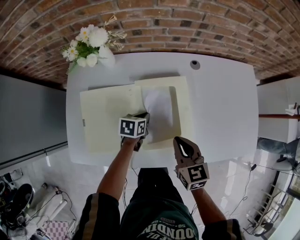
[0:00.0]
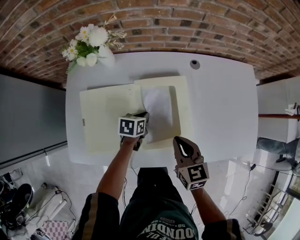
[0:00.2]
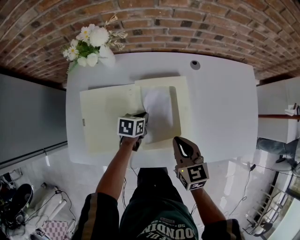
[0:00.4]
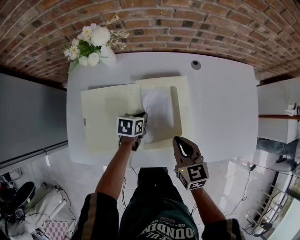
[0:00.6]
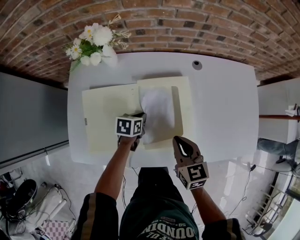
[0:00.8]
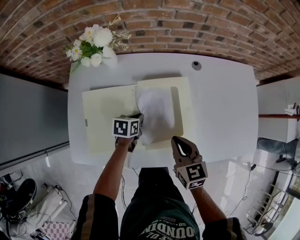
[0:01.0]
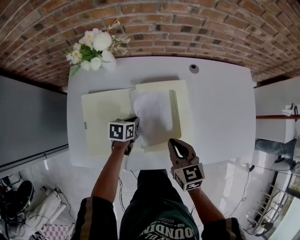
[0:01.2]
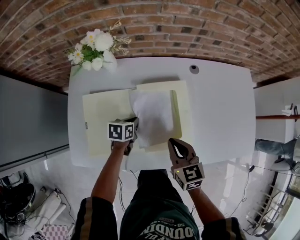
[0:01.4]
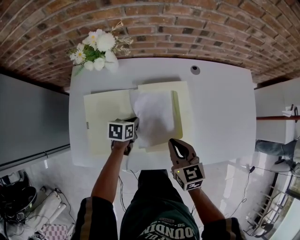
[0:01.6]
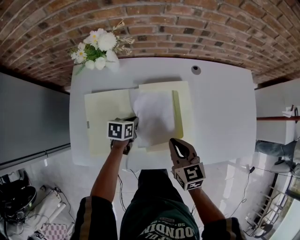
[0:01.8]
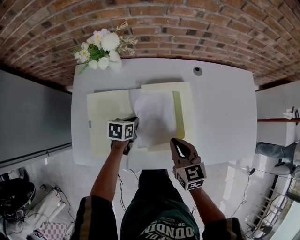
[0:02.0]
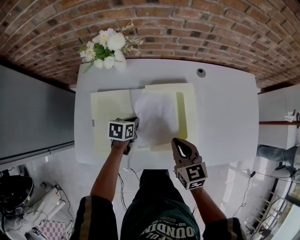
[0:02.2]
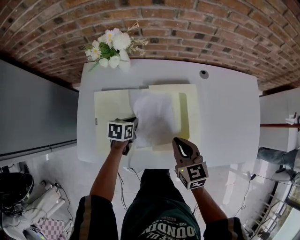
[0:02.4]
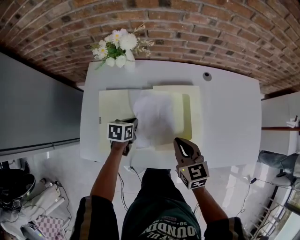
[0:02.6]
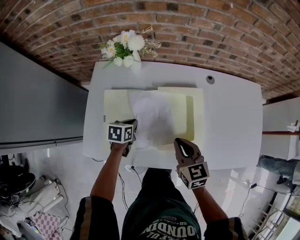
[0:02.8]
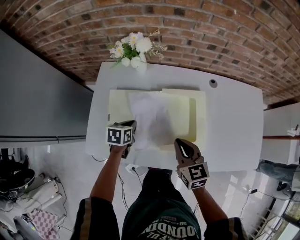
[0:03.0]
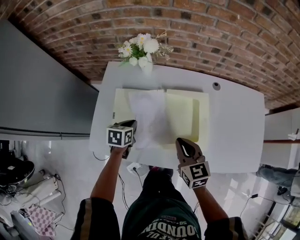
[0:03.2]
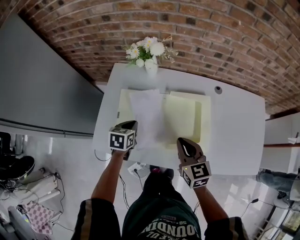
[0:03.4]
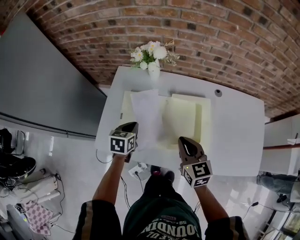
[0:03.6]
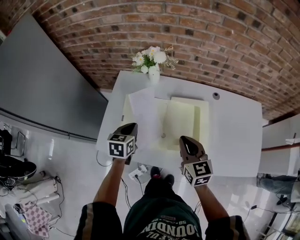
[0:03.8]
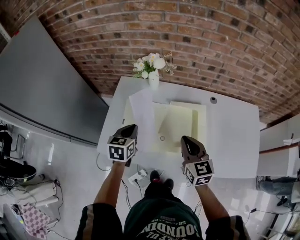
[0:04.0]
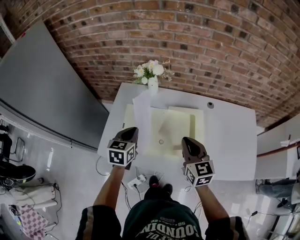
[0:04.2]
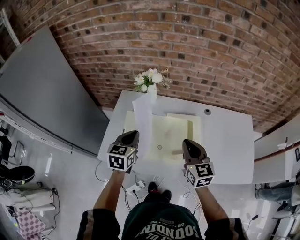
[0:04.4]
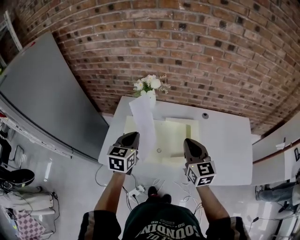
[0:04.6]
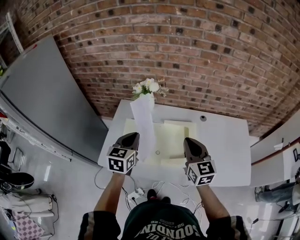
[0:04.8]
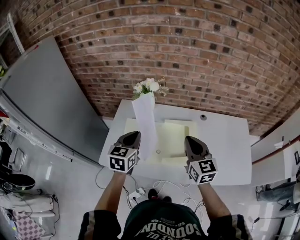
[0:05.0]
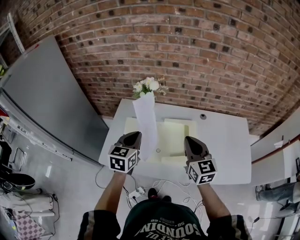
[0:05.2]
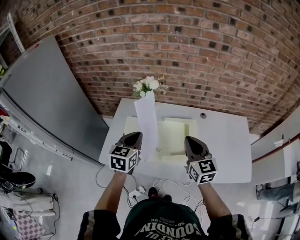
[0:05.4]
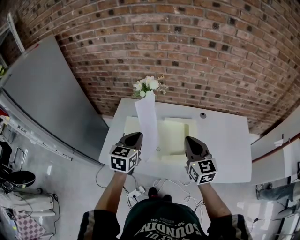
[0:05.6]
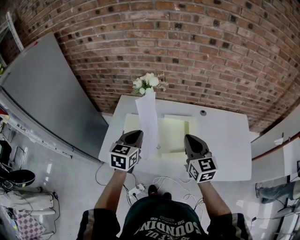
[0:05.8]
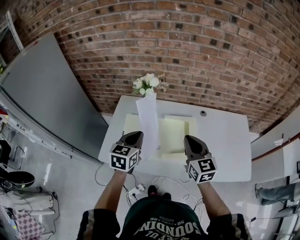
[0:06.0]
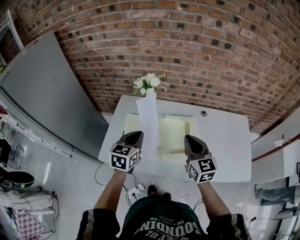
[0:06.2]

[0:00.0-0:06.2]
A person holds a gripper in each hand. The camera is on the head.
0:00.0 to 0:01.6: The left gripper heads to the left, covering roughly 5 cm.
0:01.6 to 0:03.2: The left gripper travels to the left, upward and backward by approximately 15 cm, while the right gripper goes approximately 5 cm to the left.
0:03.2 to 0:04.6: The right gripper is displaced upward by about 15 cm. The left gripper travels upward by approximately 25 cm, and changes its angle by roughly 30 degrees.
0:04.6 to 0:06.2: The grippers make only small movements.

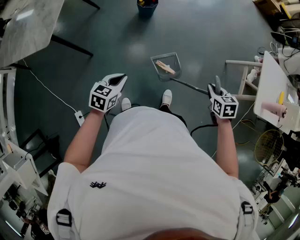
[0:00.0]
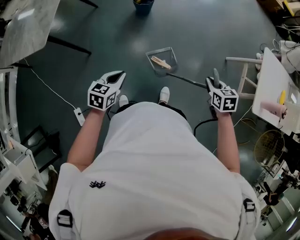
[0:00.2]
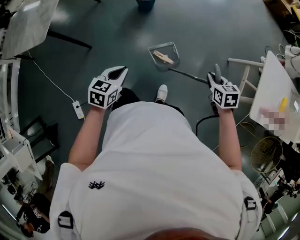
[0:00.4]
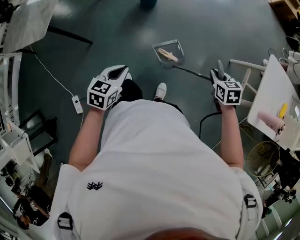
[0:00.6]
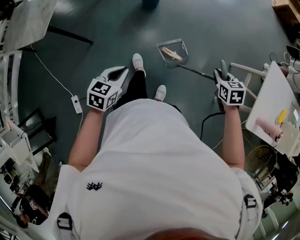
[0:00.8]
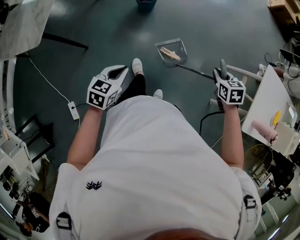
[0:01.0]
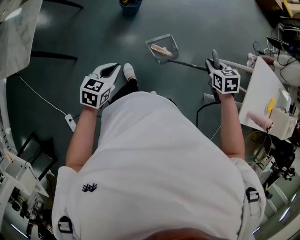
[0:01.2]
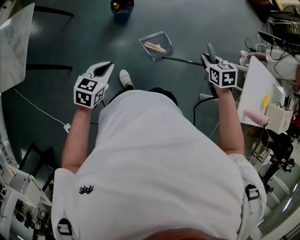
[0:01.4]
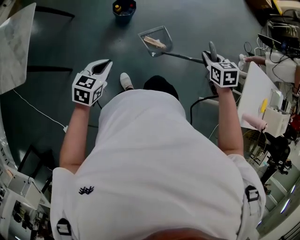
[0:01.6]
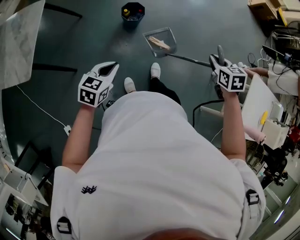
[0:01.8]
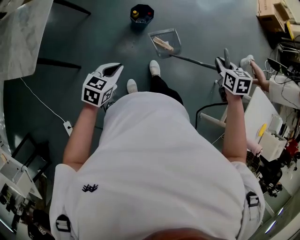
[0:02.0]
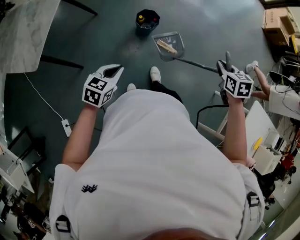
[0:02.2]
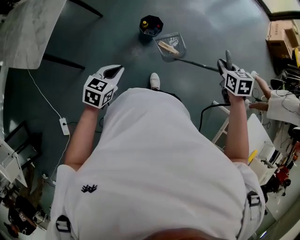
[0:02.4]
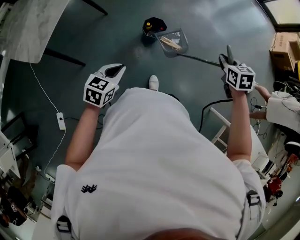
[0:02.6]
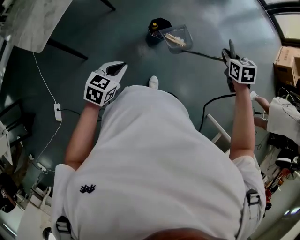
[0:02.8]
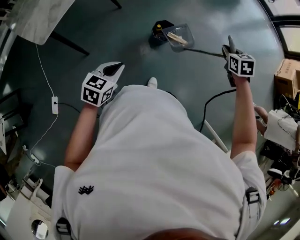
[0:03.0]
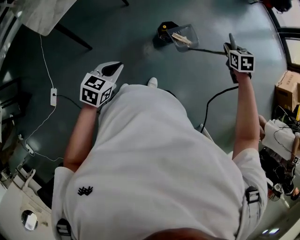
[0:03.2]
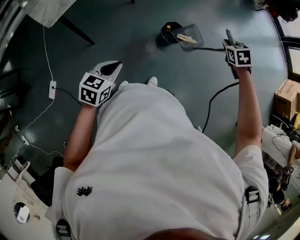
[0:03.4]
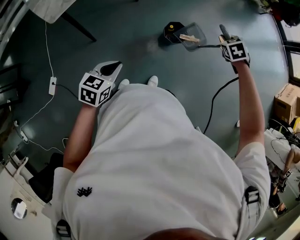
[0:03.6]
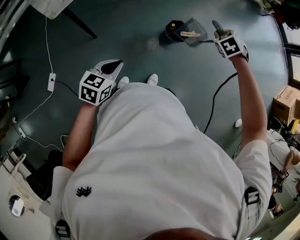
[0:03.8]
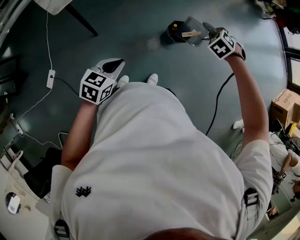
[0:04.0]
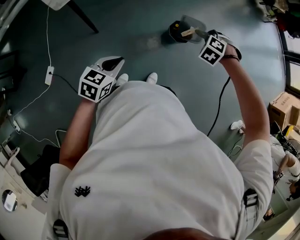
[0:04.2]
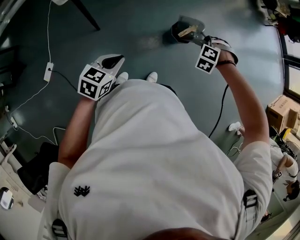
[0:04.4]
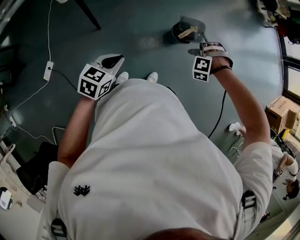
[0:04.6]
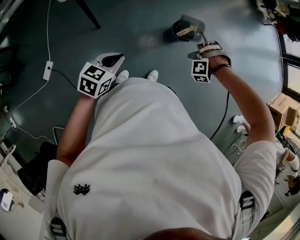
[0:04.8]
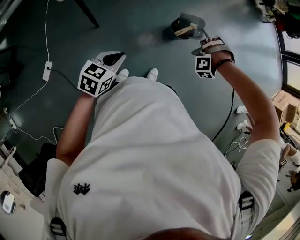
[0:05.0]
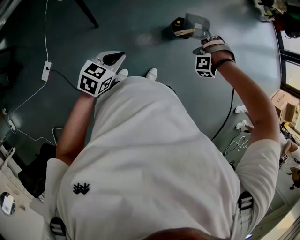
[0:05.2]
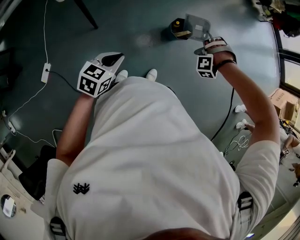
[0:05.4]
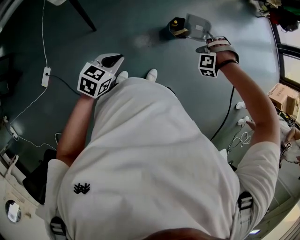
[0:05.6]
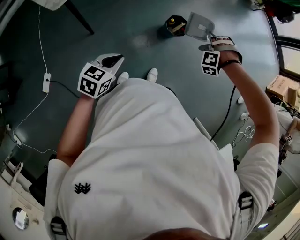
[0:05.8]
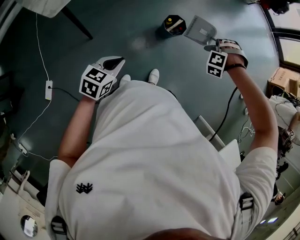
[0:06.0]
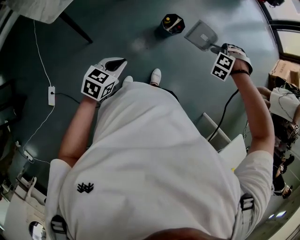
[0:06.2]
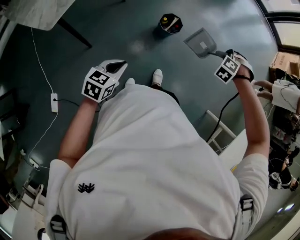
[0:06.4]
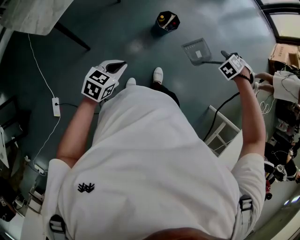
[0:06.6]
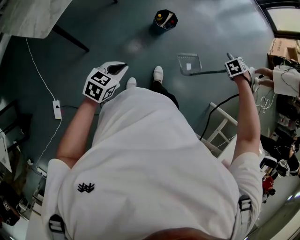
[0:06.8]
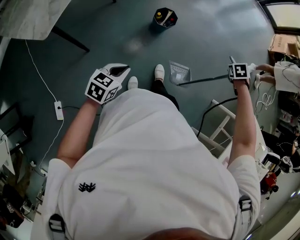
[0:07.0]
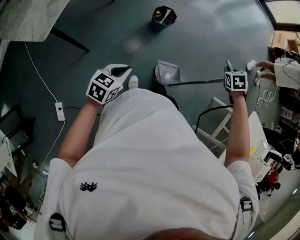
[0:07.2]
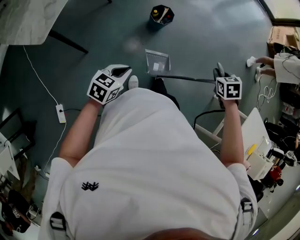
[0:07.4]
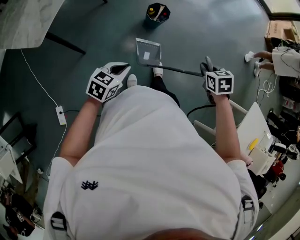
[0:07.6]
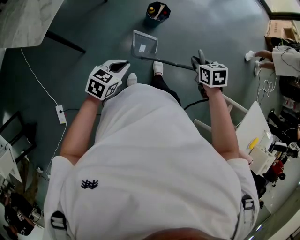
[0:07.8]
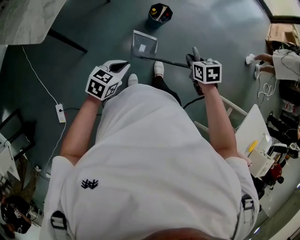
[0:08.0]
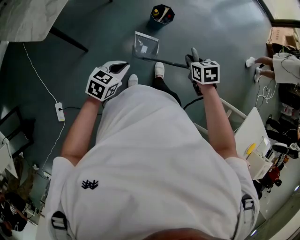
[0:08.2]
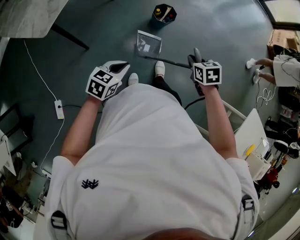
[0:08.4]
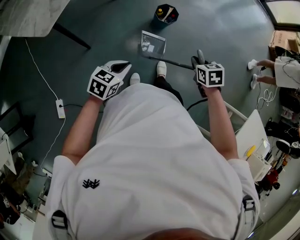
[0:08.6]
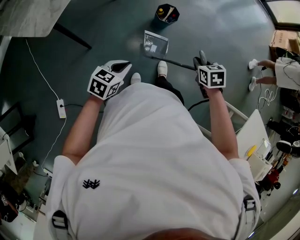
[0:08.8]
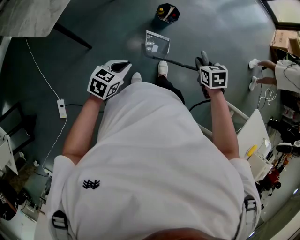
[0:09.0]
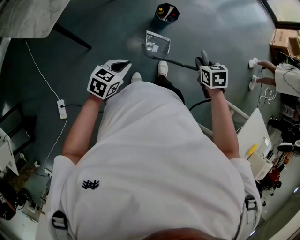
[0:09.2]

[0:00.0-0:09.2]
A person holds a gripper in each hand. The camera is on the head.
0:00.0 to 0:01.6: The left gripper changes place by approximately 30 cm.
0:01.6 to 0:03.0: The left gripper moves some 15 cm, and rotates some 30 degrees.
0:03.0 to 0:04.6: The left gripper shifts by roughly 10 cm.
0:06.2 to 0:07.6: The left gripper moves about 5 cm.

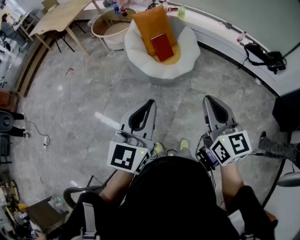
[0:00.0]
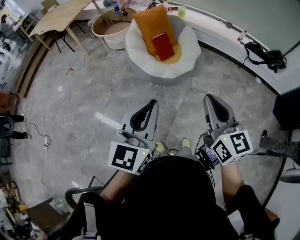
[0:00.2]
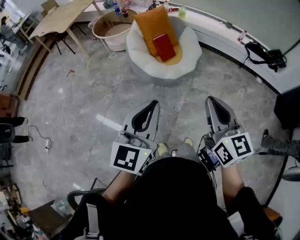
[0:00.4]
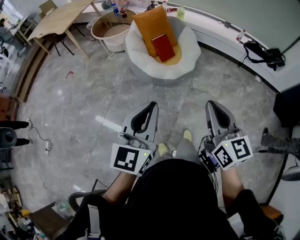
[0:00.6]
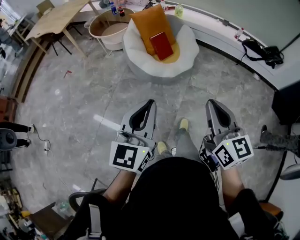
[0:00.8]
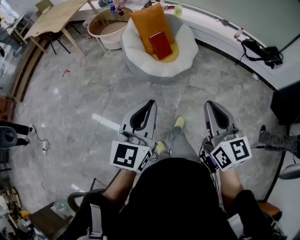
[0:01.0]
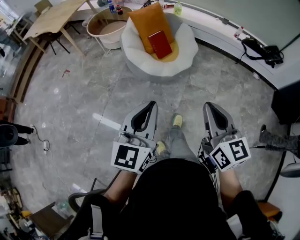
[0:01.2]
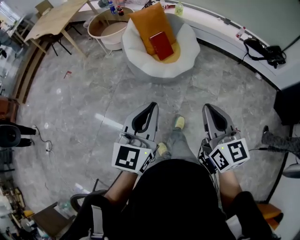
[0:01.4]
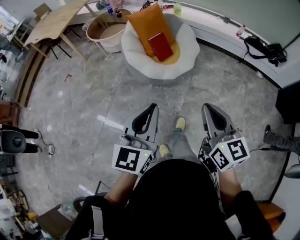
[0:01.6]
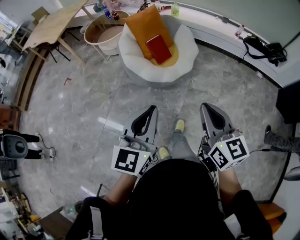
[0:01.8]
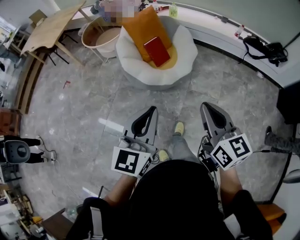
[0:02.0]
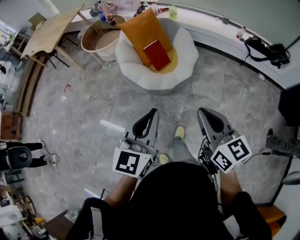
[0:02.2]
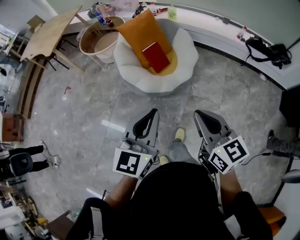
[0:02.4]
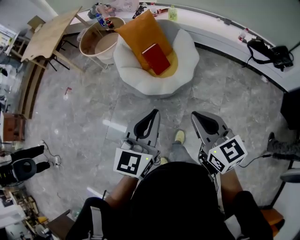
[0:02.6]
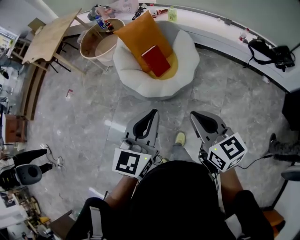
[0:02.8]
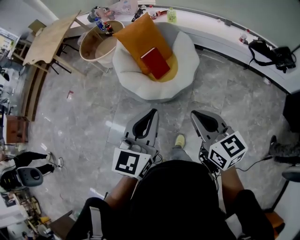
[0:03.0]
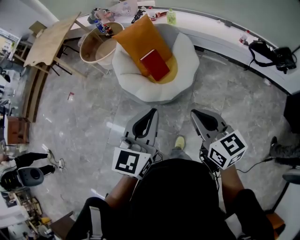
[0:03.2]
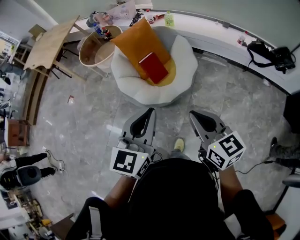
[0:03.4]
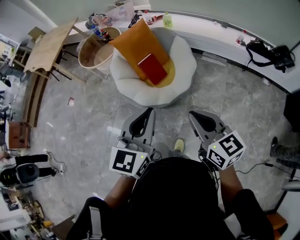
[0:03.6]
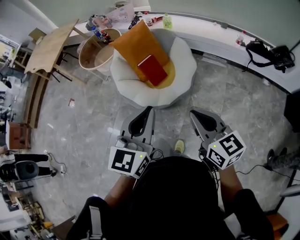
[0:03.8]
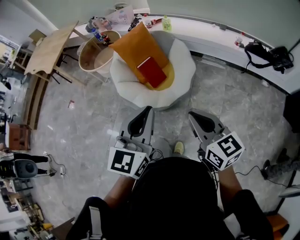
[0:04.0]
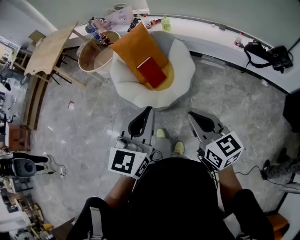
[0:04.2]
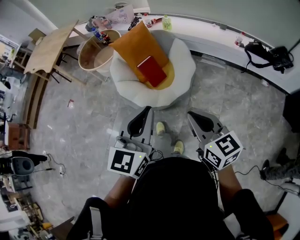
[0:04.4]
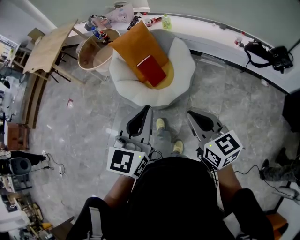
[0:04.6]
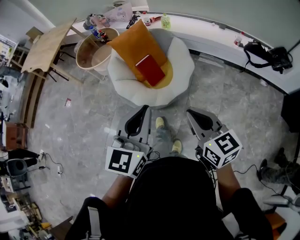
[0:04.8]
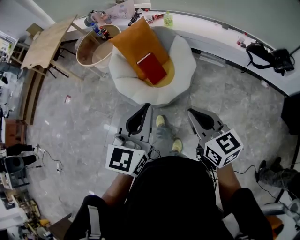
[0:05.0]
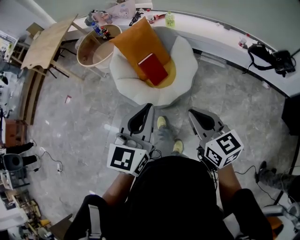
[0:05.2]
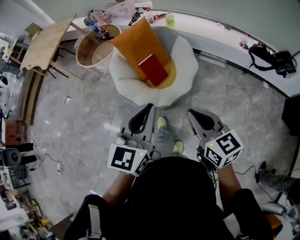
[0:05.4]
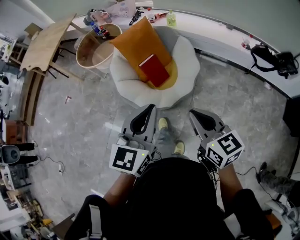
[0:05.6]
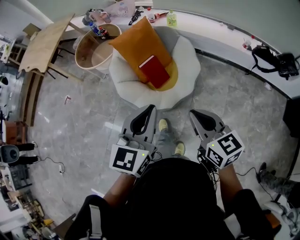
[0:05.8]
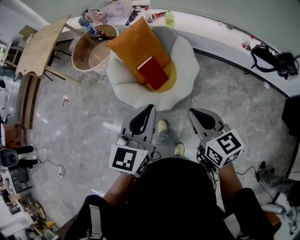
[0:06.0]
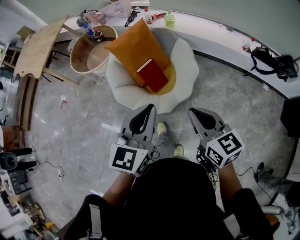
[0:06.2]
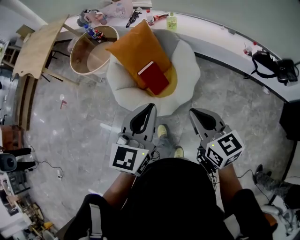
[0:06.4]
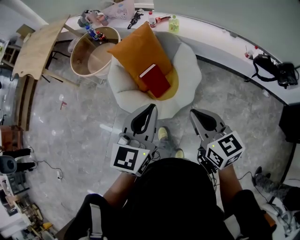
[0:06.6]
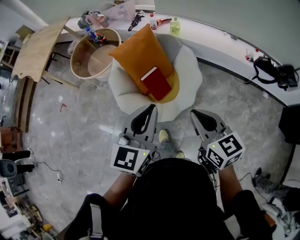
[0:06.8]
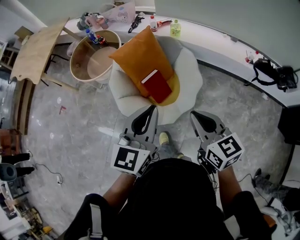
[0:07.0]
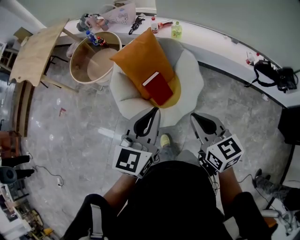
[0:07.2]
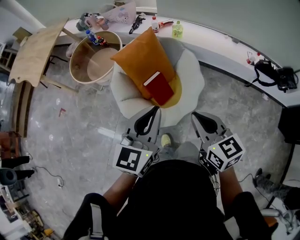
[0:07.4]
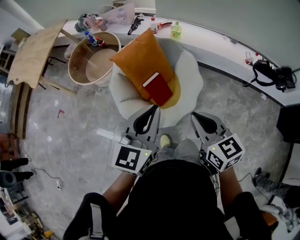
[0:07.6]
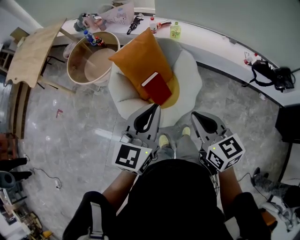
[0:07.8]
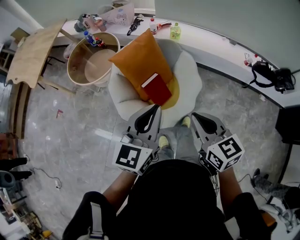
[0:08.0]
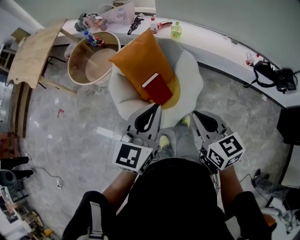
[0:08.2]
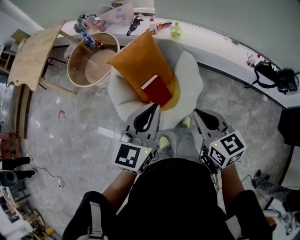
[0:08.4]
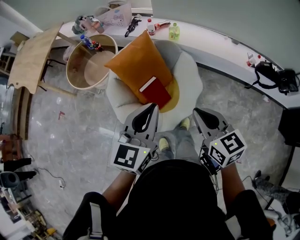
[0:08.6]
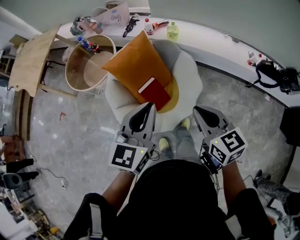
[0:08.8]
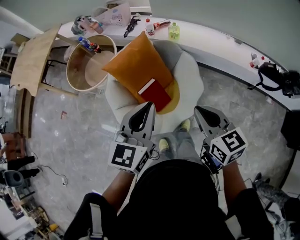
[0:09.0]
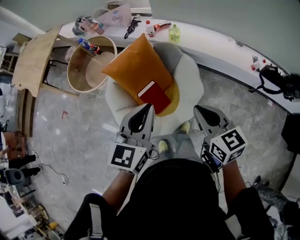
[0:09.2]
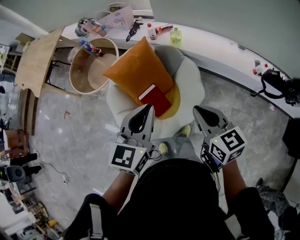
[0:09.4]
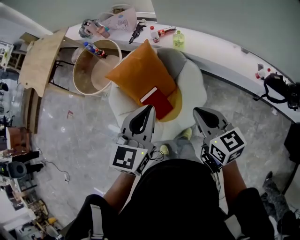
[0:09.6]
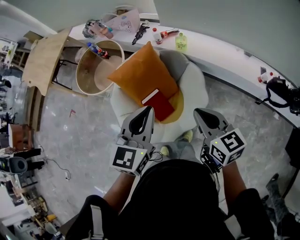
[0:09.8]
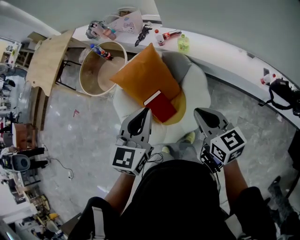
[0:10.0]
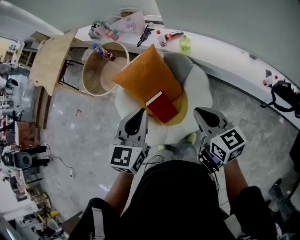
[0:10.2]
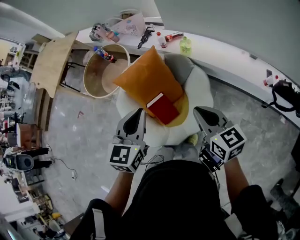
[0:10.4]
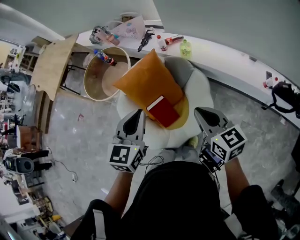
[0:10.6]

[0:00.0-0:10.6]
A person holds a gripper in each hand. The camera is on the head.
0:00.0 to 0:01.6: There are only small adjustments of the grippers.
0:01.6 to 0:03.0: The grippers both shift forward and to the right by roughly 20 cm.
0:03.0 to 0:04.6: The grippers stay close to where they were, moving slightly.
0:04.6 to 0:06.0: Both grippers travel together forward, approximately 15 cm.
0:06.0 to 0:07.6: Both grippers travel together forward and to the left, roughly 15 cm.
0:07.6 to 0:09.0: Both grippers travel together forward and to the right, some 15 cm.
0:09.0 to 0:10.6: The right gripper is displaced forward and to the right by about 10 cm, while the left gripper moves forward, approximately 10 cm.
